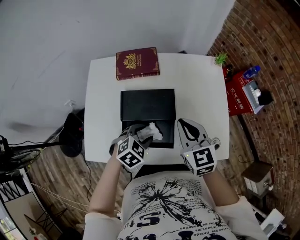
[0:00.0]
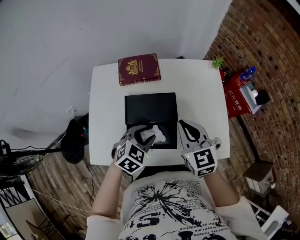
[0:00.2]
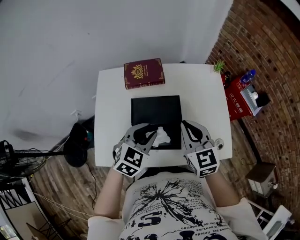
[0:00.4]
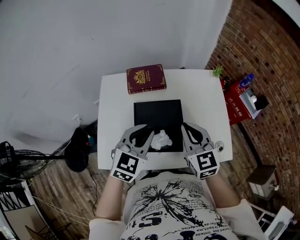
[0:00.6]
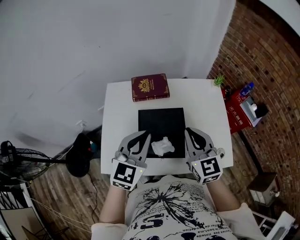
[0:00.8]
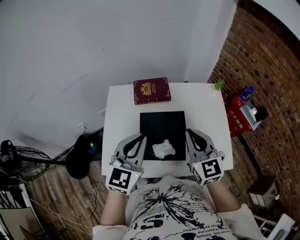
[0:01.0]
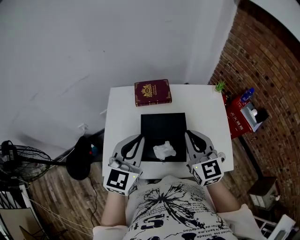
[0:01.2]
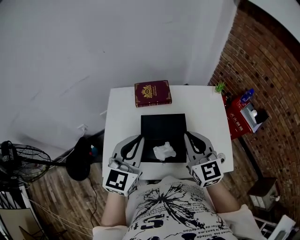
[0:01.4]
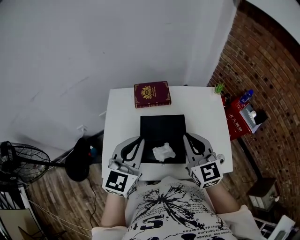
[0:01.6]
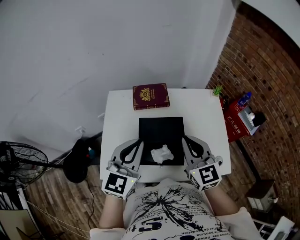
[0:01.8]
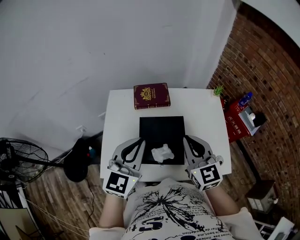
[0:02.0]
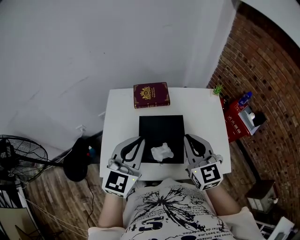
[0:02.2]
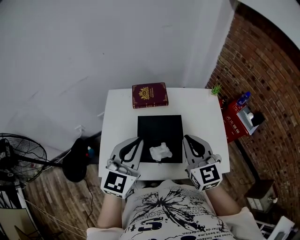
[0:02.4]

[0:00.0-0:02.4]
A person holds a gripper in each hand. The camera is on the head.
0:00.0 to 0:01.2: The right gripper is displaced upward and to the left by roughly 15 cm; the left gripper goes approximately 25 cm upward, points its fingers approximately 50 degrees further upward, and closes up.
0:01.2 to 0:02.4: There are only small adjustments of the grippers.

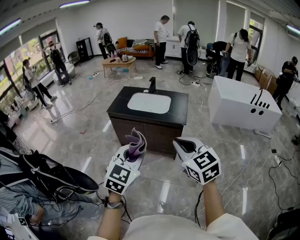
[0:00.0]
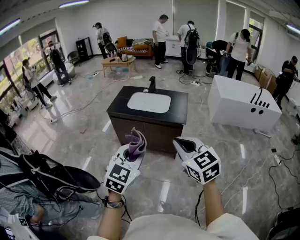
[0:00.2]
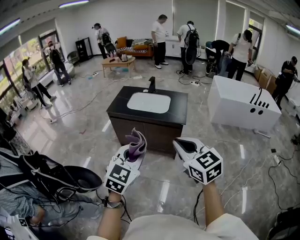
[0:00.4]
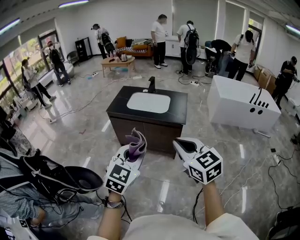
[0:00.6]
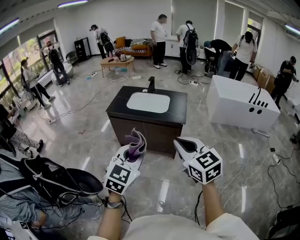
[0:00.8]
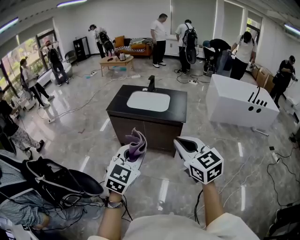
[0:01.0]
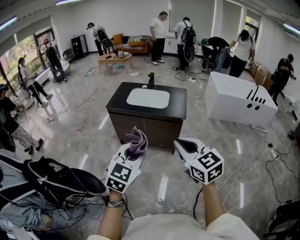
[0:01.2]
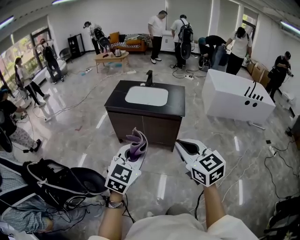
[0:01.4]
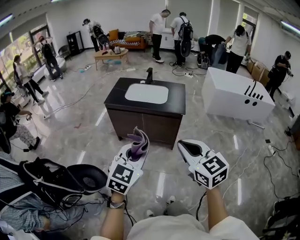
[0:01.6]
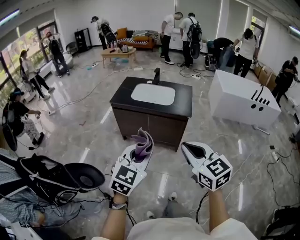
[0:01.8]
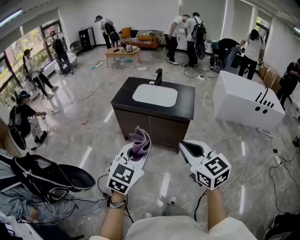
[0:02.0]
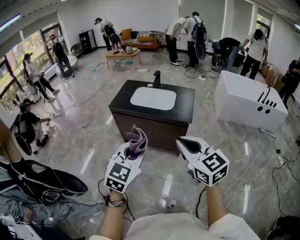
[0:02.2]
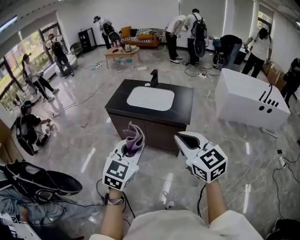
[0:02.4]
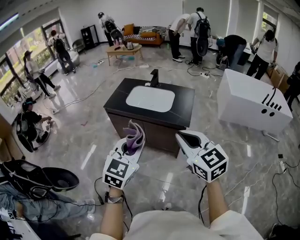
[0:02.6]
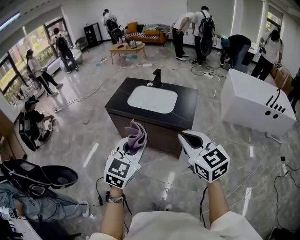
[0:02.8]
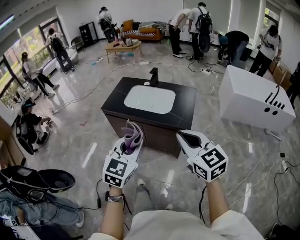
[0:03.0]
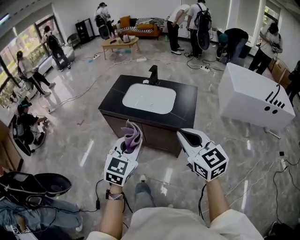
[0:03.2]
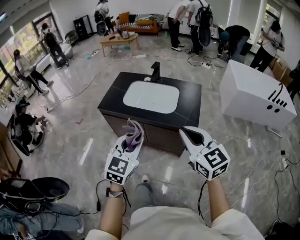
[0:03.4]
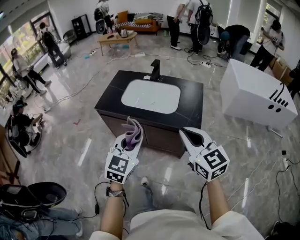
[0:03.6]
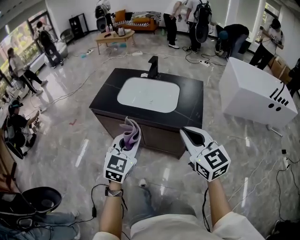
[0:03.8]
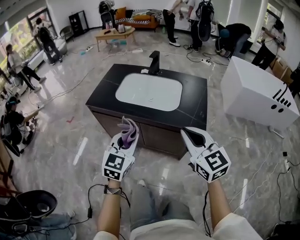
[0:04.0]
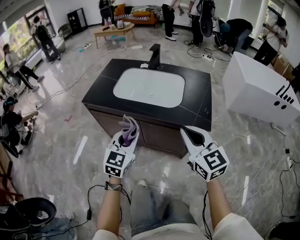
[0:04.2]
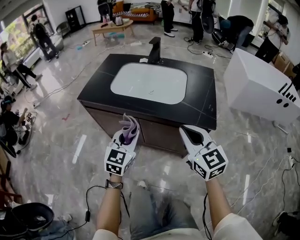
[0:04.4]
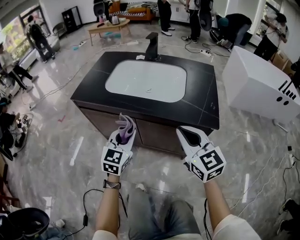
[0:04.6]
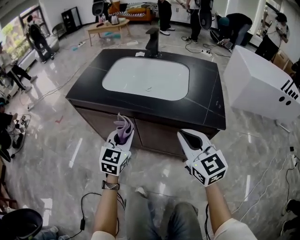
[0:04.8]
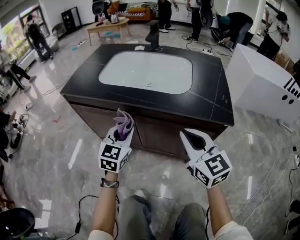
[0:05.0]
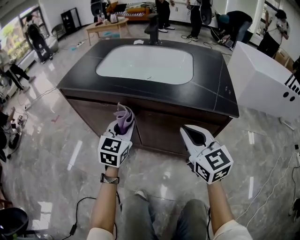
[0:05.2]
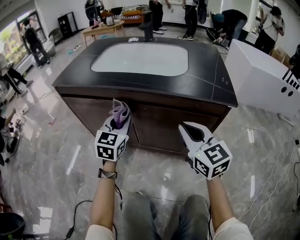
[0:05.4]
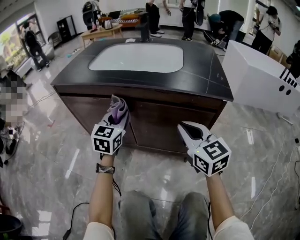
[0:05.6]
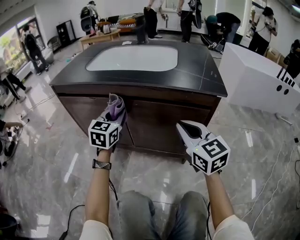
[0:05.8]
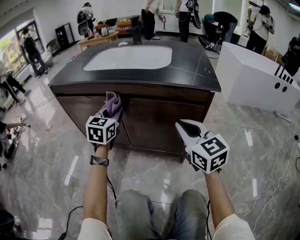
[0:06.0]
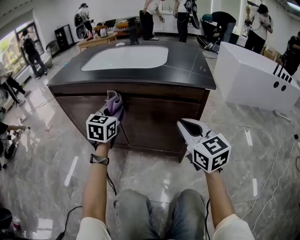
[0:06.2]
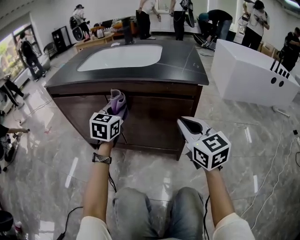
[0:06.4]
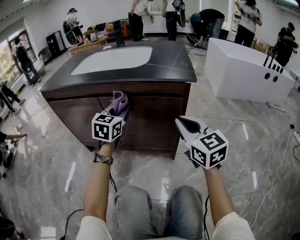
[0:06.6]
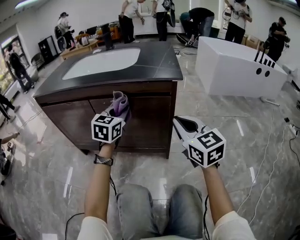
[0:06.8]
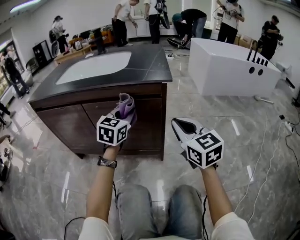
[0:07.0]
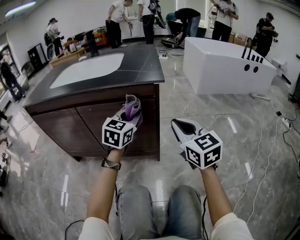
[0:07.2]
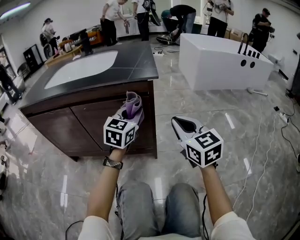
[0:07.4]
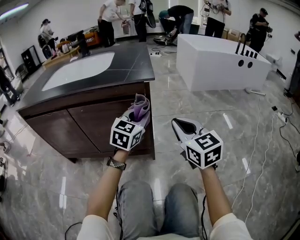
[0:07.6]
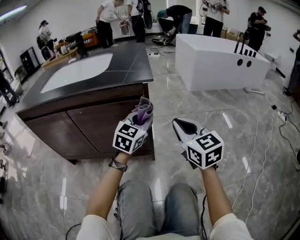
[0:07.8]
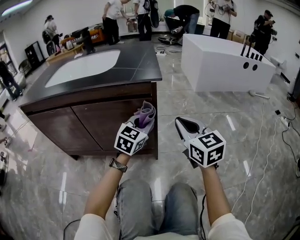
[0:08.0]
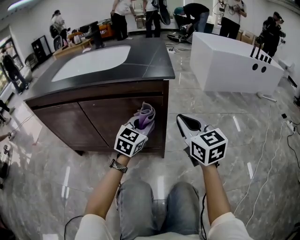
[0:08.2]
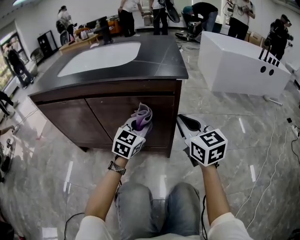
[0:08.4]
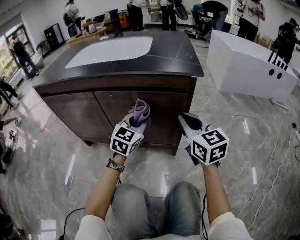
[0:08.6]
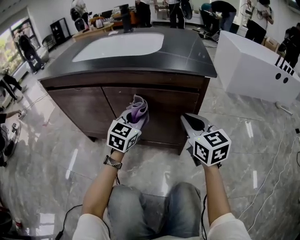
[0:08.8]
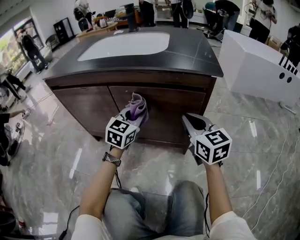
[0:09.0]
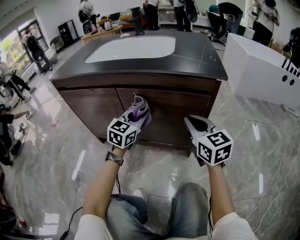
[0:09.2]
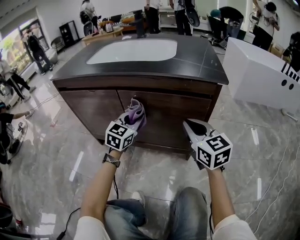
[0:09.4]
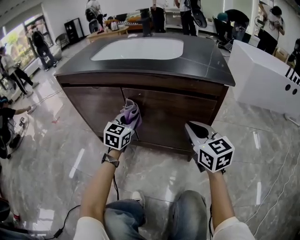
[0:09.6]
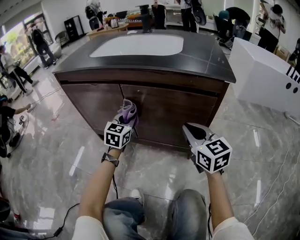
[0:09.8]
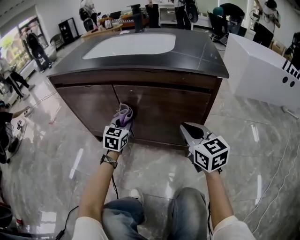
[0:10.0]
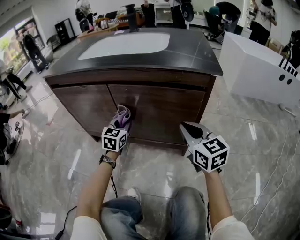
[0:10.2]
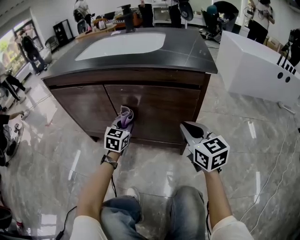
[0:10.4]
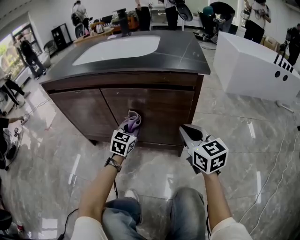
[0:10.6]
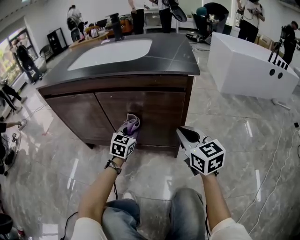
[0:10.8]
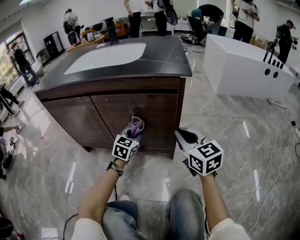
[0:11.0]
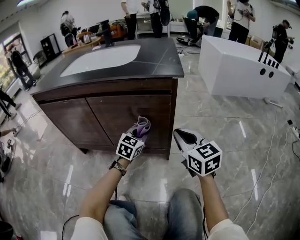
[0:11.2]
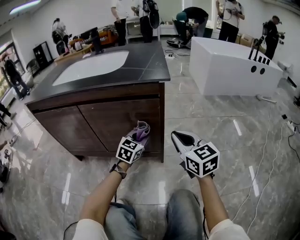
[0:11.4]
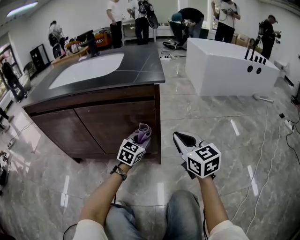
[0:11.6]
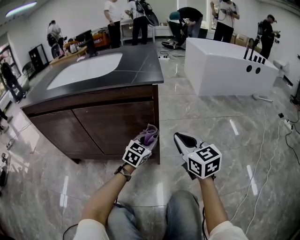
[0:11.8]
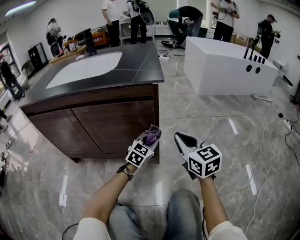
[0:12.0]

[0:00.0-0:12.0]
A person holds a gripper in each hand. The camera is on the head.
0:00.0 to 0:01.6: The right gripper heads backward, covering about 5 cm.
0:01.6 to 0:03.0: The right gripper is displaced forward and to the right by roughly 30 cm. Meanwhile the left gripper is displaced forward by approximately 25 cm.
0:03.0 to 0:04.4: The two grippers go some 40 cm downward and forward.
0:04.4 to 0:06.0: The left gripper shifts some 25 cm downward and forward, while the right gripper goes roughly 25 cm downward.
0:06.0 to 0:07.6: The left gripper travels to the right by some 35 cm, and swivels approximately 30 degrees. Meanwhile the right gripper travels to the right by some 20 cm.
0:07.6 to 0:09.0: The two grippers go roughly 20 cm to the left.
0:09.0 to 0:10.4: The left gripper shifts some 10 cm downward and to the left.
0:10.4 to 0:12.0: The right gripper shifts approximately 15 cm to the right; the left gripper shifts about 30 cm to the right, and changes its angle by about 30 degrees.

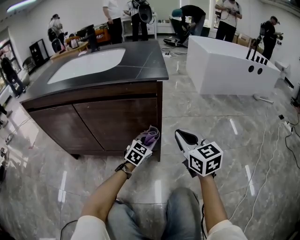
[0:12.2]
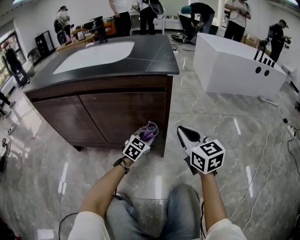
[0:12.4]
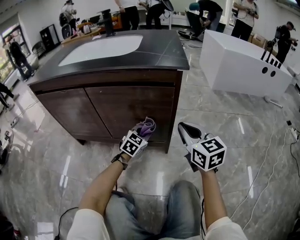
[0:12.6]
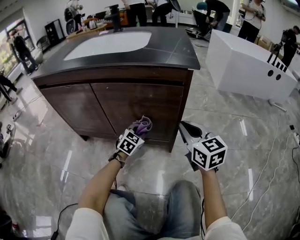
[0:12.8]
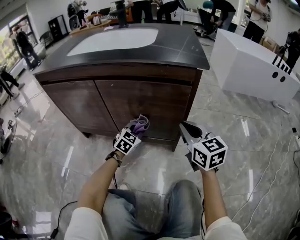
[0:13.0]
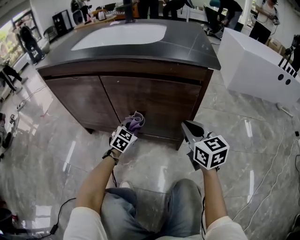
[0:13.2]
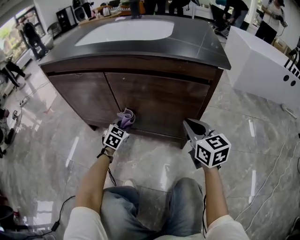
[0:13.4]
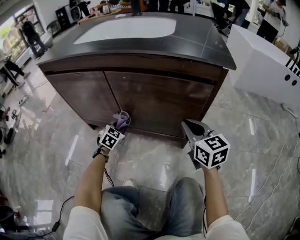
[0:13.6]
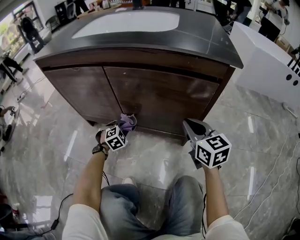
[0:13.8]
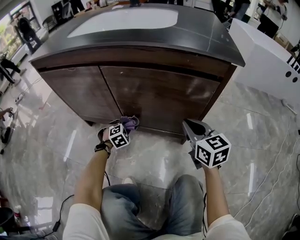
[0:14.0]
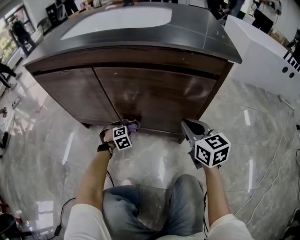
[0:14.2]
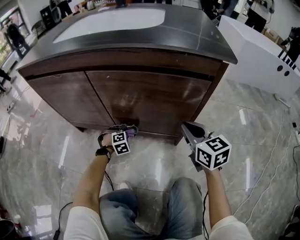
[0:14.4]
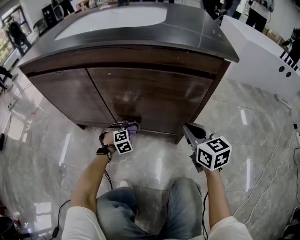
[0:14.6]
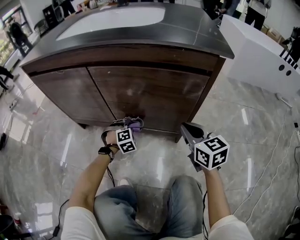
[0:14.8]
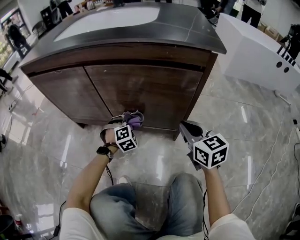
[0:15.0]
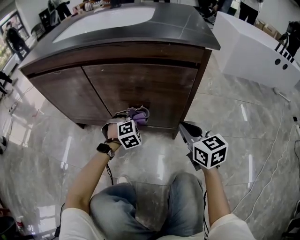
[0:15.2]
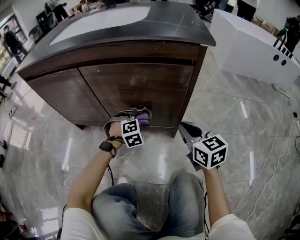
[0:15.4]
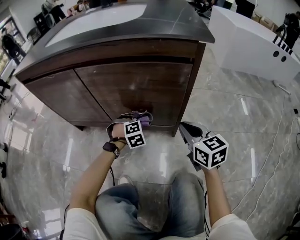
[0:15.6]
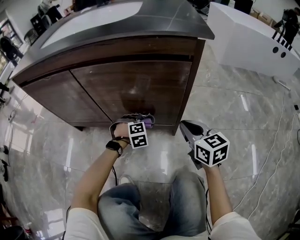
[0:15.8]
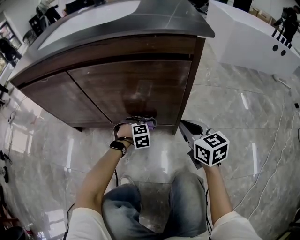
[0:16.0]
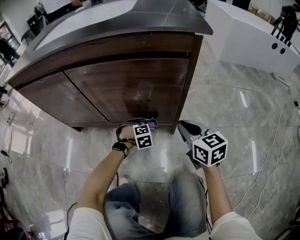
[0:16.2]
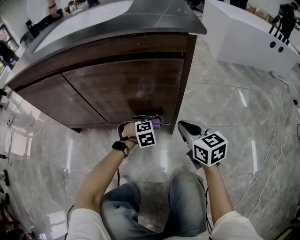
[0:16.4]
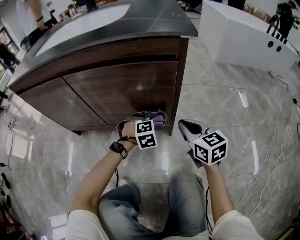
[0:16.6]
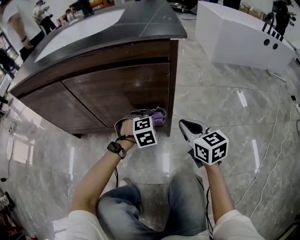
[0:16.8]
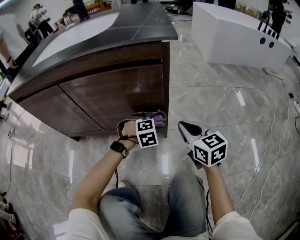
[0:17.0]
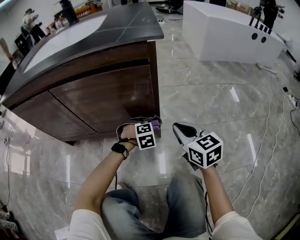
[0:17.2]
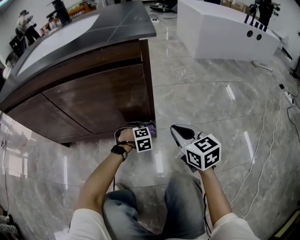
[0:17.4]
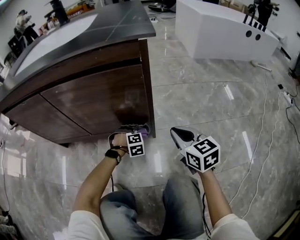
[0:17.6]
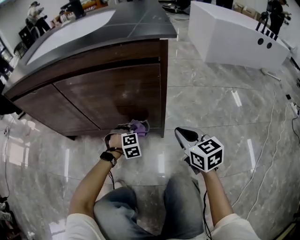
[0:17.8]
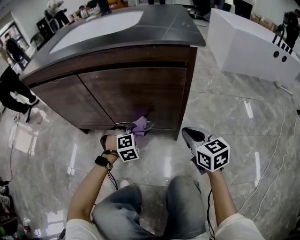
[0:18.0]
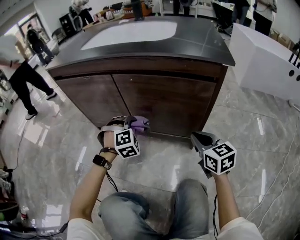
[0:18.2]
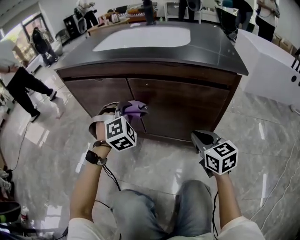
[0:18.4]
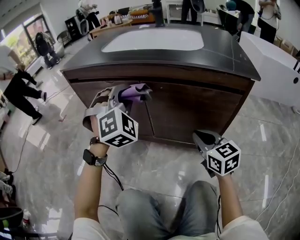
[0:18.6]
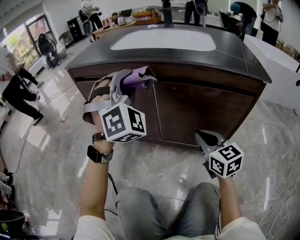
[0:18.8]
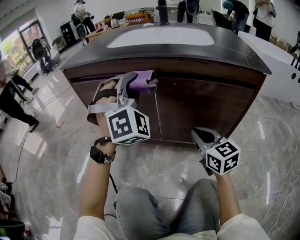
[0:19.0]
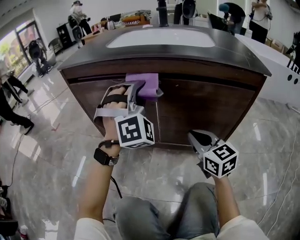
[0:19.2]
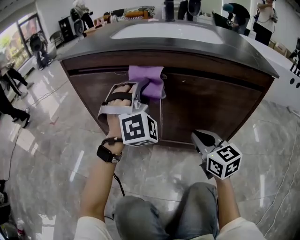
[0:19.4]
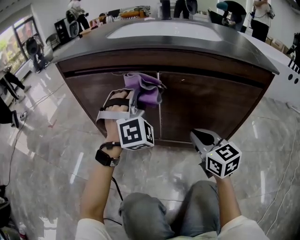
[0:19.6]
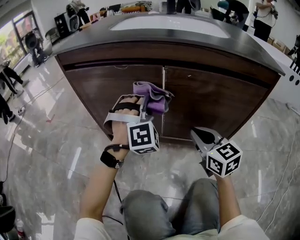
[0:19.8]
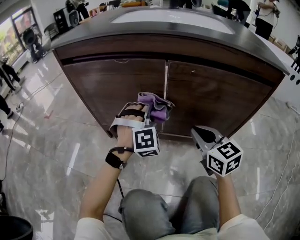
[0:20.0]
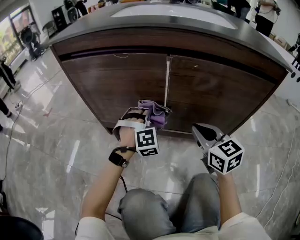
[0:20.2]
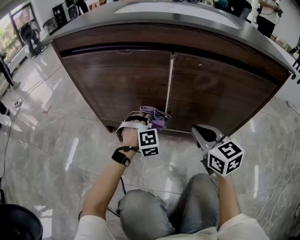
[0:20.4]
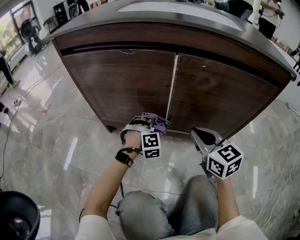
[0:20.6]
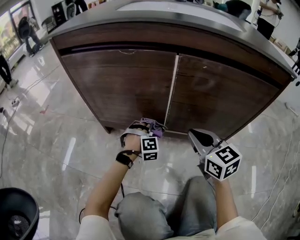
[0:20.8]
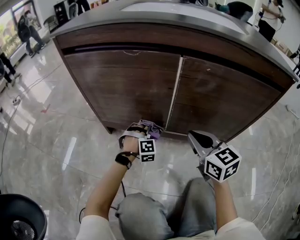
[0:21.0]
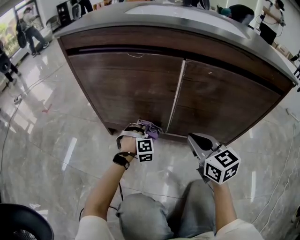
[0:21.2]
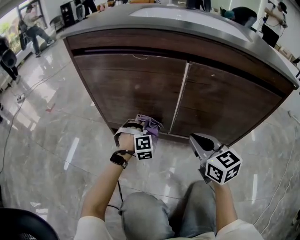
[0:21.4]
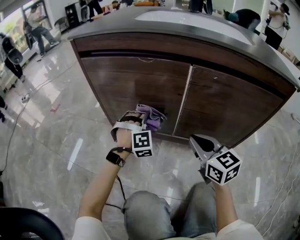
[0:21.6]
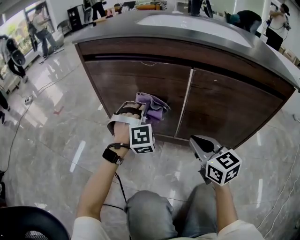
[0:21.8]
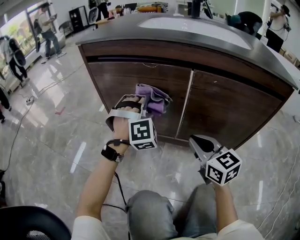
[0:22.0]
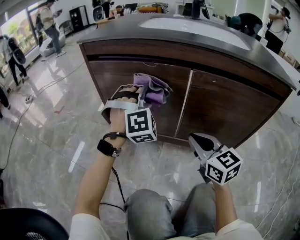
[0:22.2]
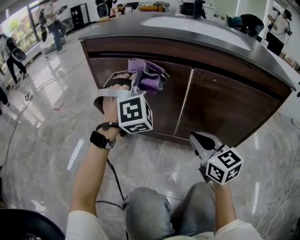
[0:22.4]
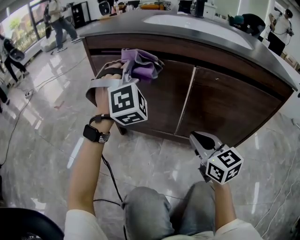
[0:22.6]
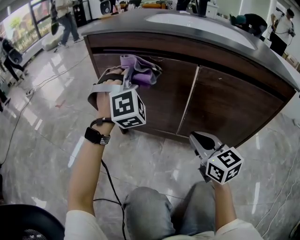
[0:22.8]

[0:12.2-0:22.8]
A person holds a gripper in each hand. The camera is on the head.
0:12.2 to 0:13.8: The left gripper goes approximately 35 cm to the left and downward, and changes its angle by about 40 degrees. The right gripper travels to the left, downward and forward by roughly 15 cm.
0:13.8 to 0:15.2: The left gripper travels to the right and upward by about 15 cm, while the right gripper ends up some 5 cm from where it was.
0:15.2 to 0:16.8: The left gripper goes roughly 15 cm to the right, and reaches approximately 15 cm downward, then returns. Meanwhile the right gripper travels to the right by roughly 5 cm.
0:16.8 to 0:18.2: The left gripper is displaced to the left by roughly 25 cm, and turns by roughly 30 degrees, while the right gripper heads to the left, covering roughly 10 cm.
0:18.2 to 0:19.8: The left gripper goes approximately 15 cm to the left and forward, reaches roughly 30 cm upward, then returns, and changes its angle by roughly 30 degrees, while the right gripper goes approximately 25 cm to the left and forward.
0:19.8 to 0:21.2: The left gripper shifts approximately 30 cm downward, and changes its angle by some 30 degrees; the right gripper ends up about 5 cm from where it was.
0:21.2 to 0:22.8: The right gripper shifts by roughly 5 cm, while the left gripper travels upward by some 35 cm, and tilts its fingers roughly 30 degrees upward.
